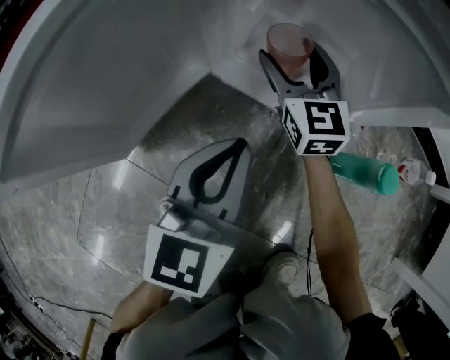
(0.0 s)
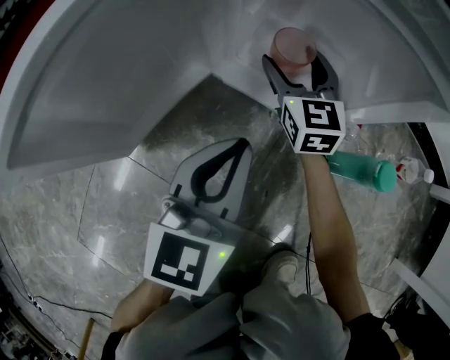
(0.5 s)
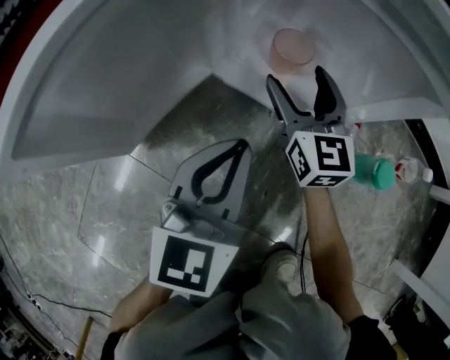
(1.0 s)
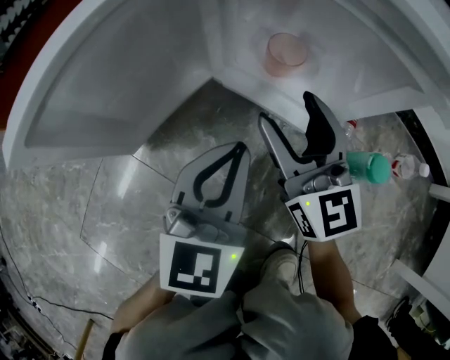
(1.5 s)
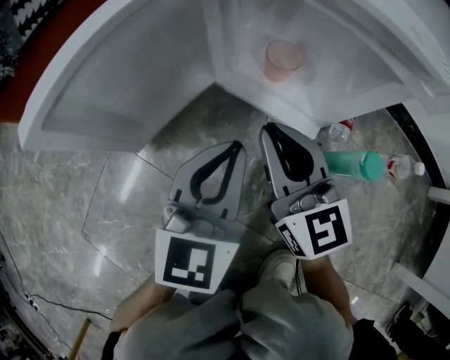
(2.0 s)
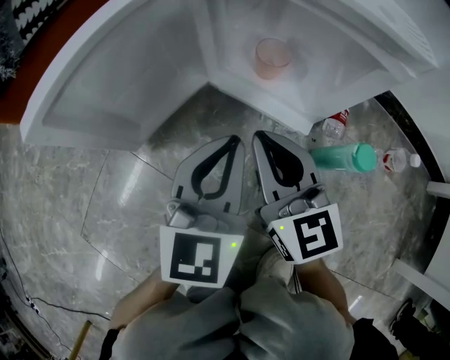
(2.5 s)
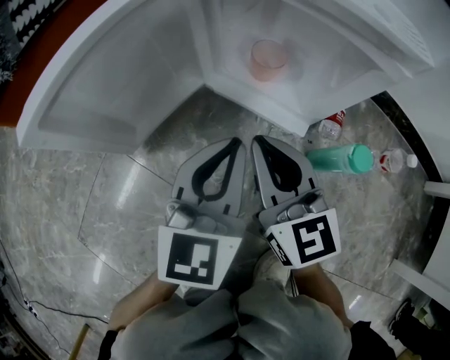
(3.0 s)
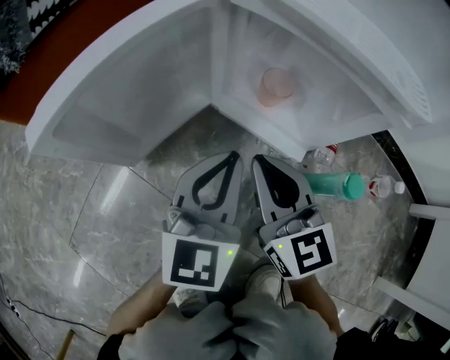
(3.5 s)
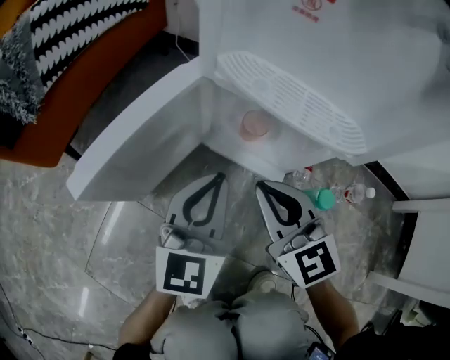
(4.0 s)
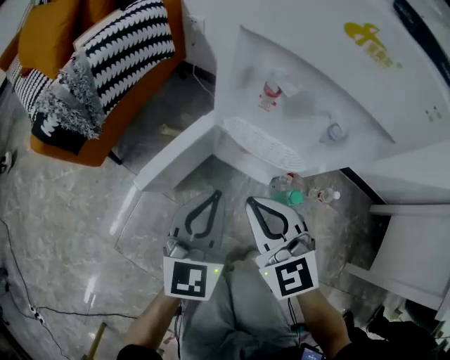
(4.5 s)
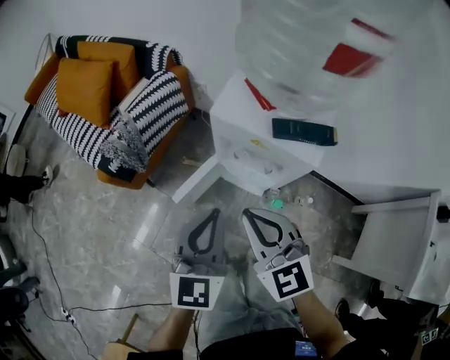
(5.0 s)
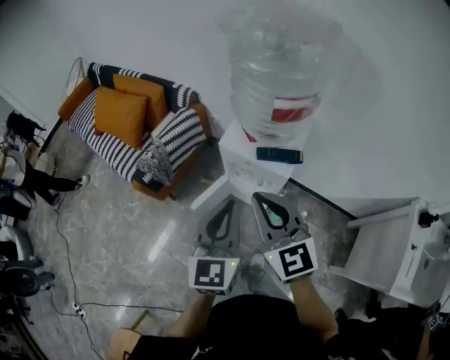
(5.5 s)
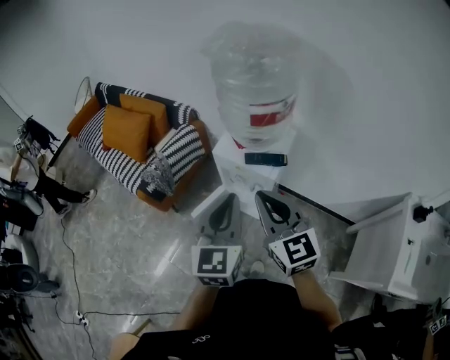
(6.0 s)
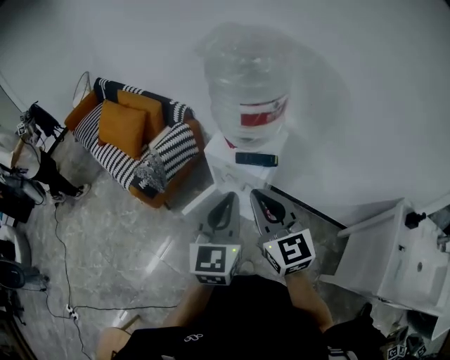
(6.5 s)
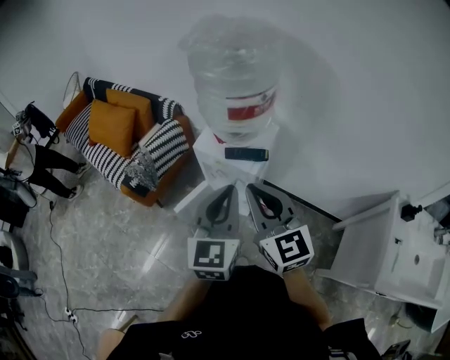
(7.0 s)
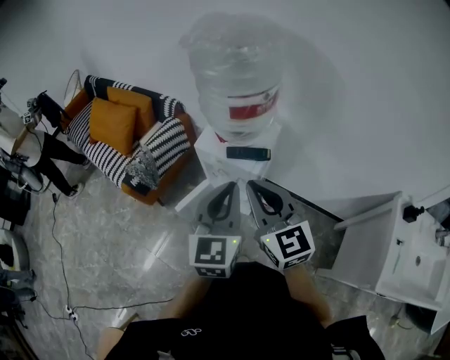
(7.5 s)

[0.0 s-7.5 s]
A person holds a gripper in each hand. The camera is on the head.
0.0 to 2.0 s: The right gripper goes roughly 20 cm backward and upward, and closes. The left gripper changes place by about 5 cm.
2.0 to 4.0 s: The grippers both shift upward by roughly 10 cm.
4.0 to 5.5 s: The two grippers go about 70 cm upward.
5.5 to 7.5 s: Both grippers travel together to the right, roughly 10 cm.

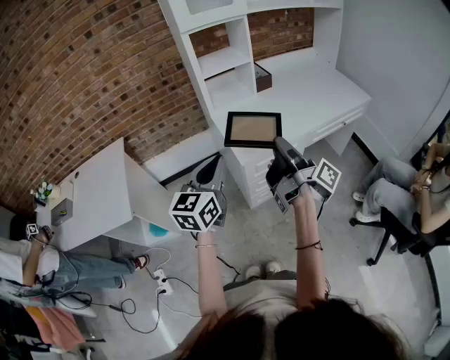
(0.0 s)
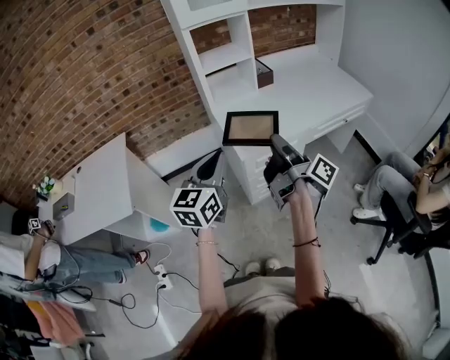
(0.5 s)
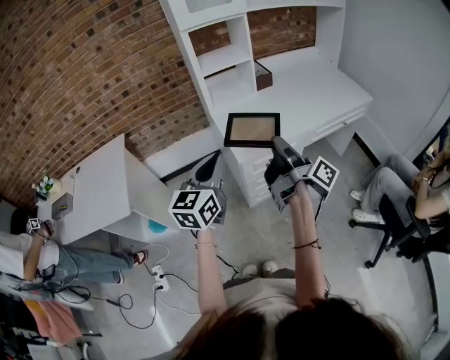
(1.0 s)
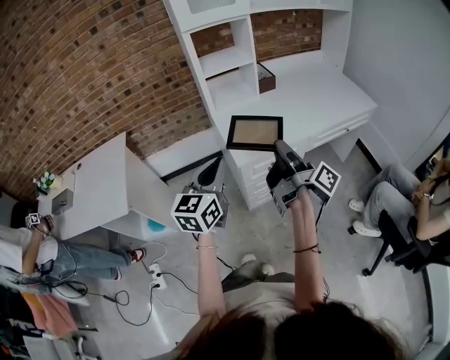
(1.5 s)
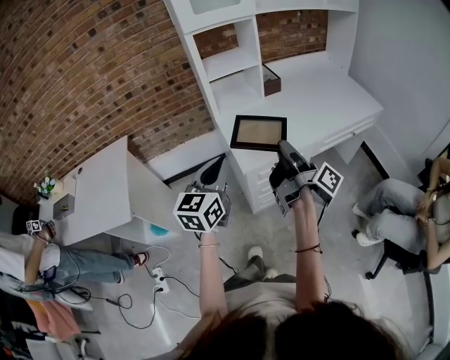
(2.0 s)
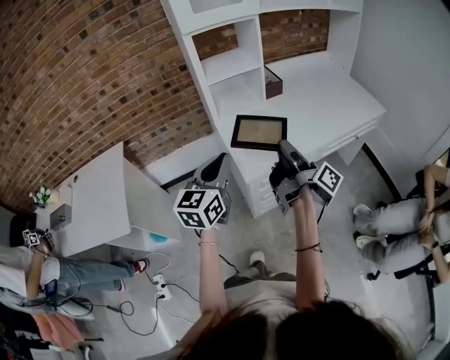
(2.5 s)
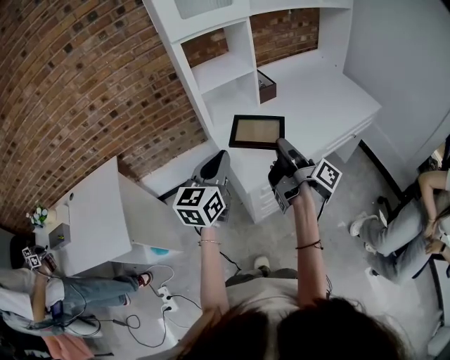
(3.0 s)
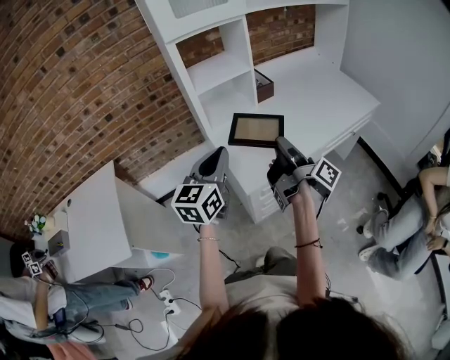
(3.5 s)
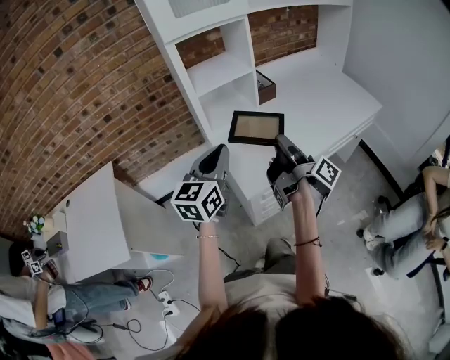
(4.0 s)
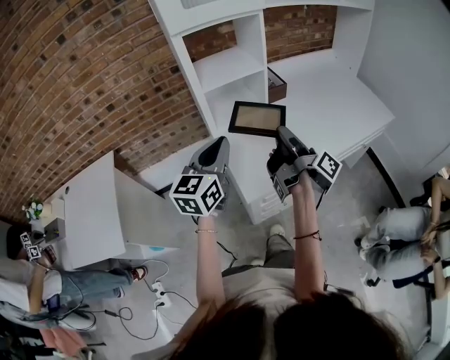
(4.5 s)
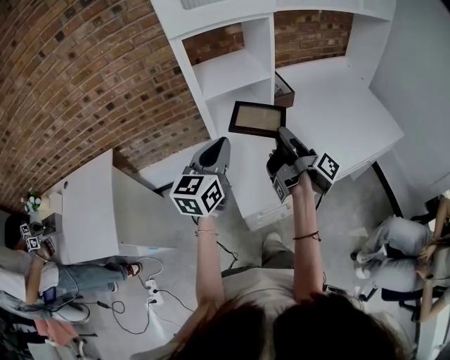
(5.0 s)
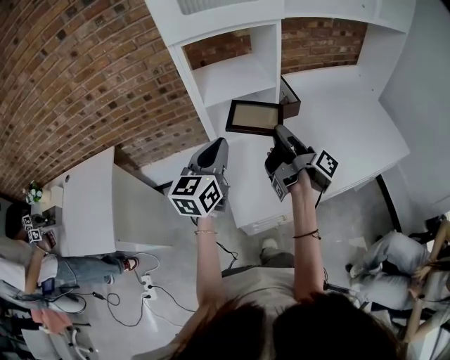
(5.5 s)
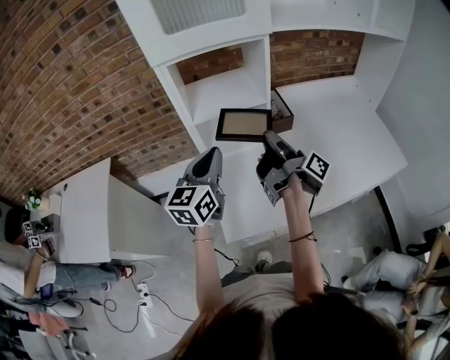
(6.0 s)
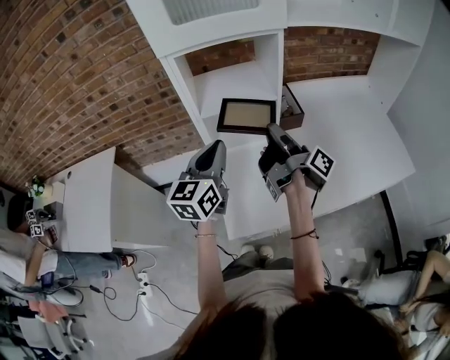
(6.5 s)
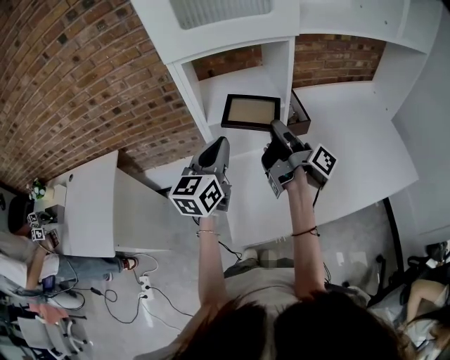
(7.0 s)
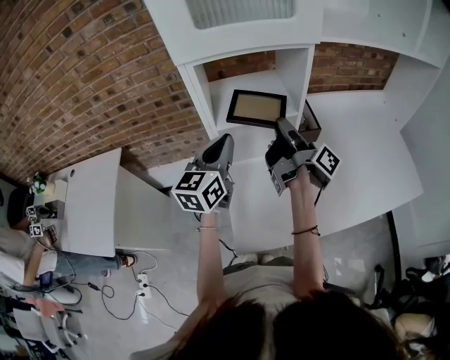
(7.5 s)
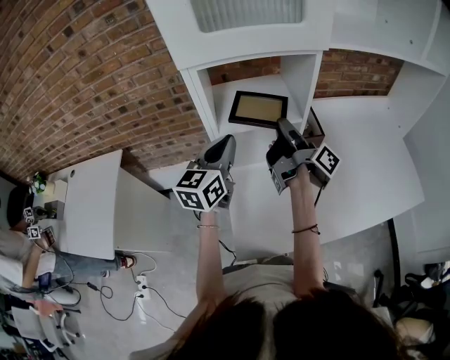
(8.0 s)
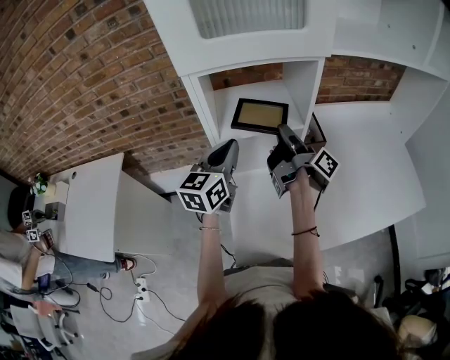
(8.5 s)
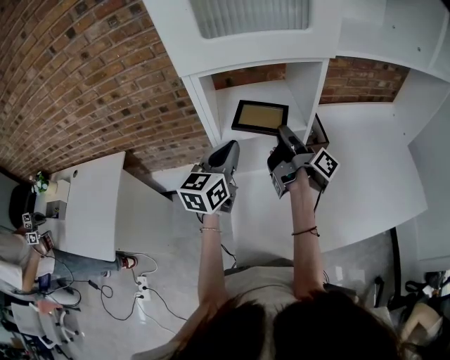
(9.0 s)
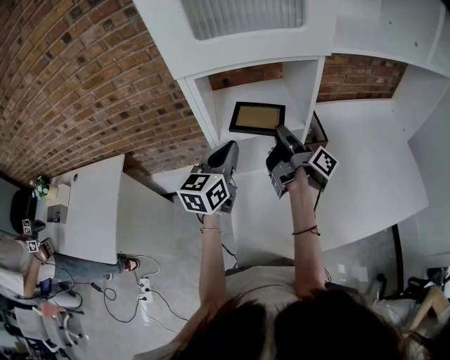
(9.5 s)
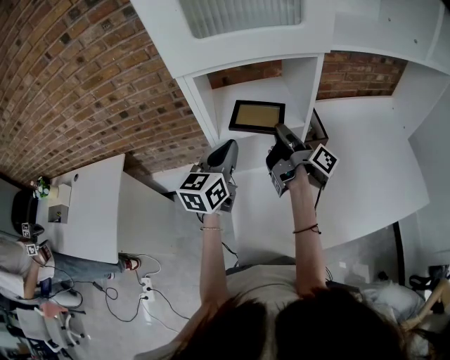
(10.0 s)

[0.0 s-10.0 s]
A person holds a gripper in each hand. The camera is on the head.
2.0 to 4.0 s: The left gripper ends up approximately 15 cm from where it was.
4.0 to 6.0 s: The left gripper shifts by about 15 cm.
6.0 to 8.0 s: The left gripper moves approximately 10 cm.

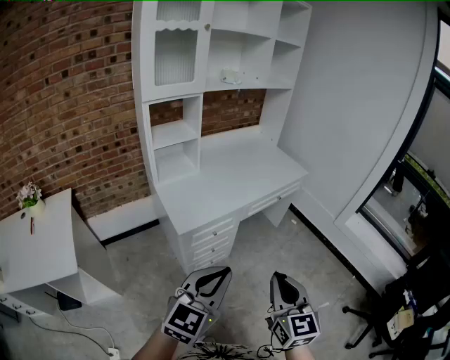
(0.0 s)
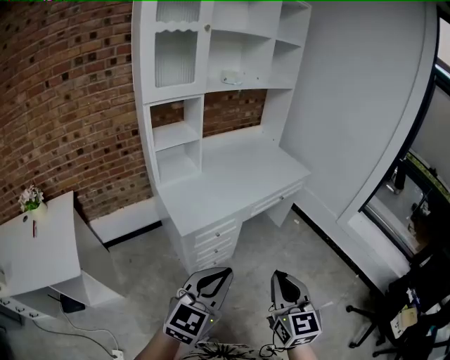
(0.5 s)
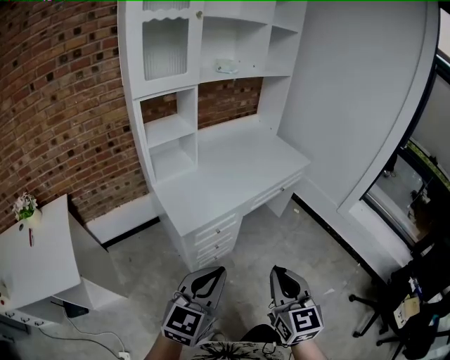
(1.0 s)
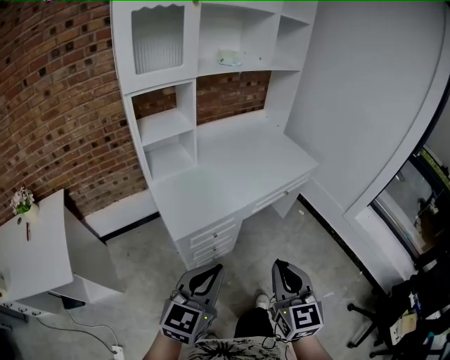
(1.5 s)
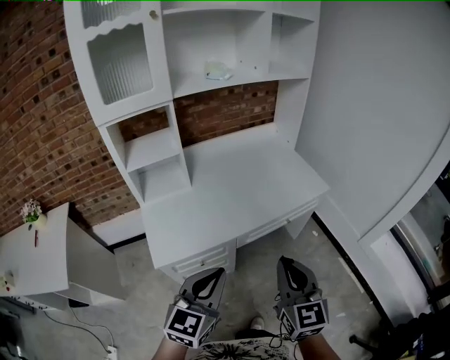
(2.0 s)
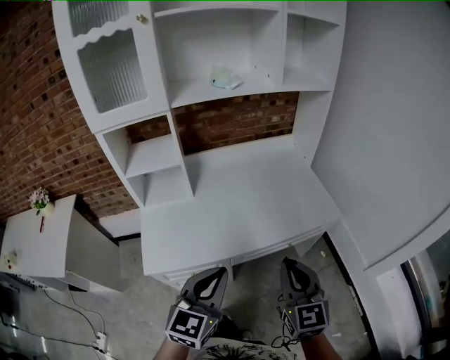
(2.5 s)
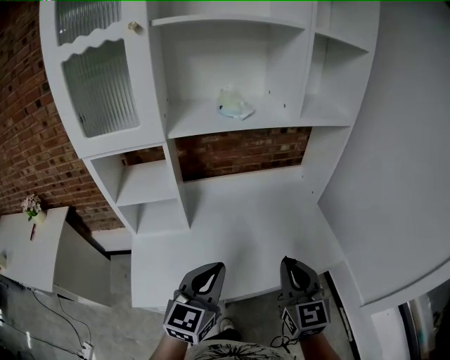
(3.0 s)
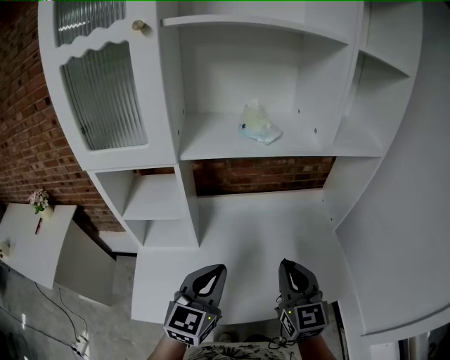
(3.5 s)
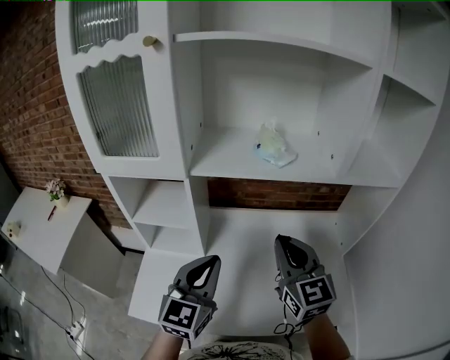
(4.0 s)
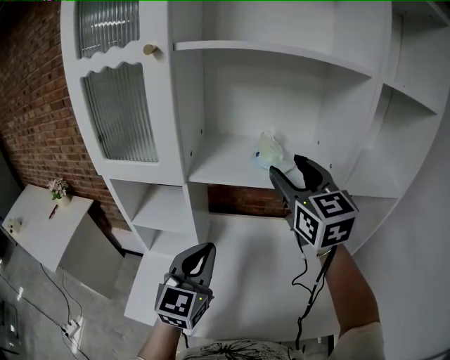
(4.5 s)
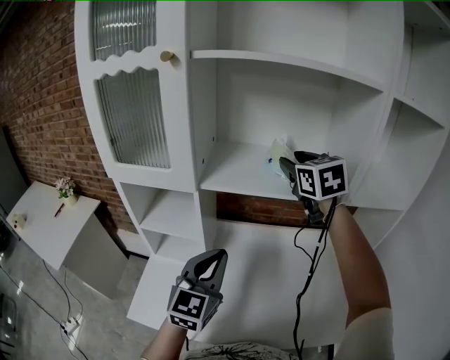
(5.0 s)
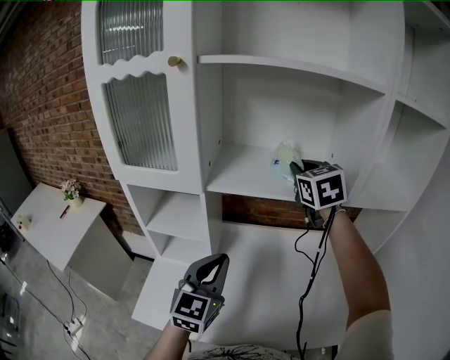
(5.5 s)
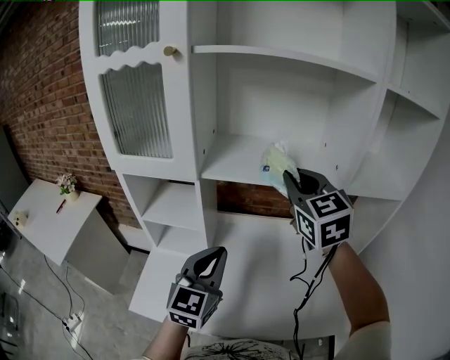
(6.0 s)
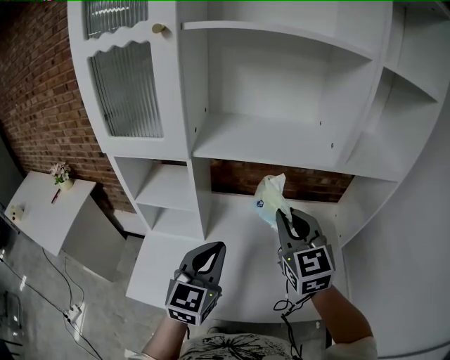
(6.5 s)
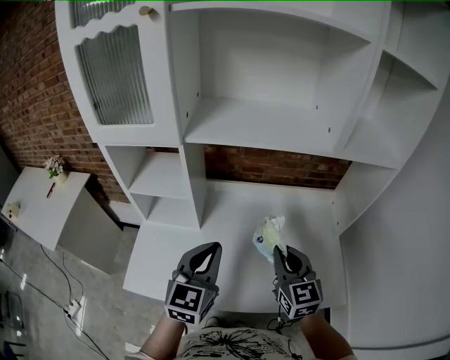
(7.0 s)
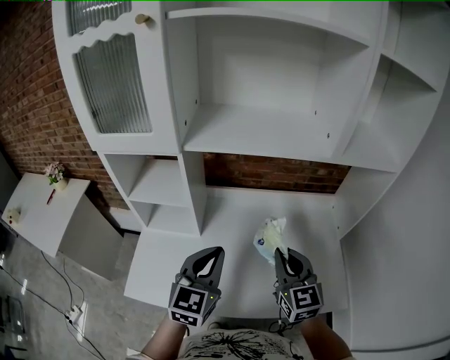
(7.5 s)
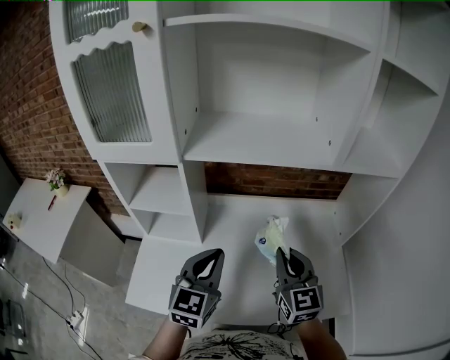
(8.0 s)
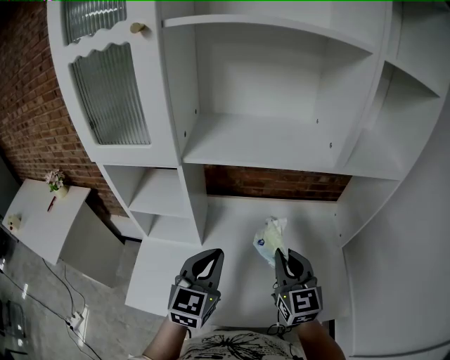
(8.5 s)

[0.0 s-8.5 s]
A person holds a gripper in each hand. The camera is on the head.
0.0 to 2.0 s: The two grippers go approximately 30 cm forward.
2.0 to 4.0 s: The pair of grippers is taken roughly 50 cm. The right gripper turns by some 30 degrees; the left gripper turns by about 30 degrees.
4.0 to 6.5 s: The right gripper reaches about 20 cm forward, then returns, and opens, then closes once more.
6.5 to 8.5 s: The right gripper travels downward by approximately 10 cm.

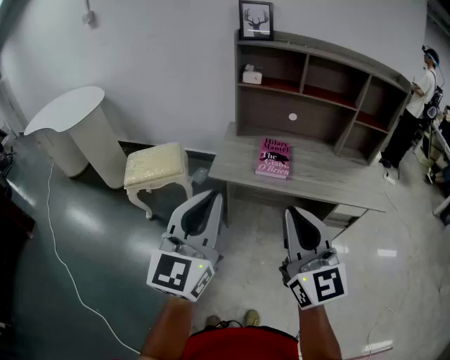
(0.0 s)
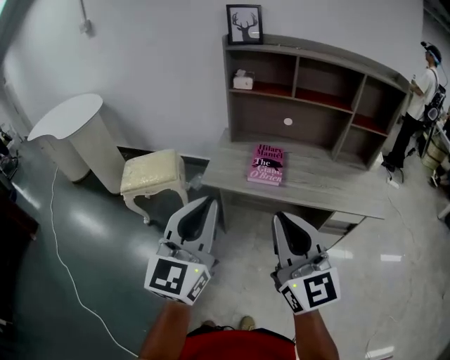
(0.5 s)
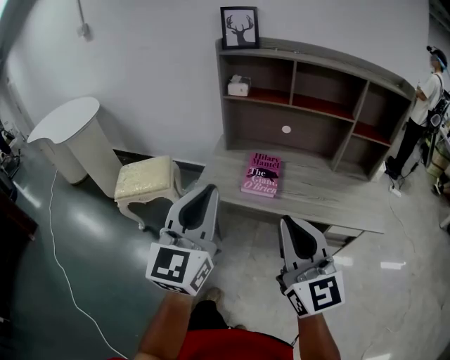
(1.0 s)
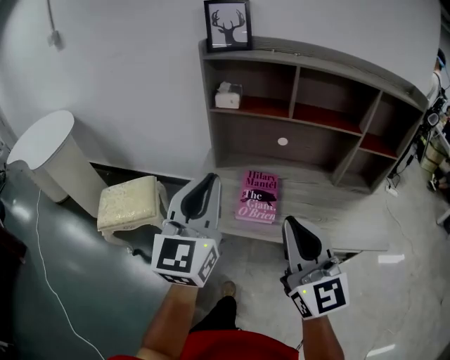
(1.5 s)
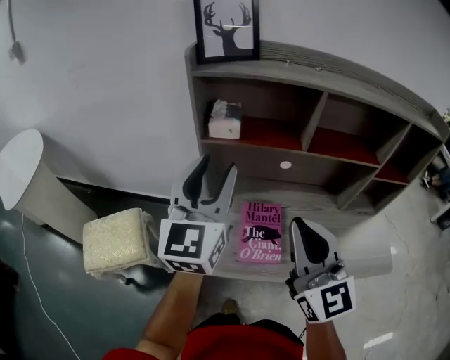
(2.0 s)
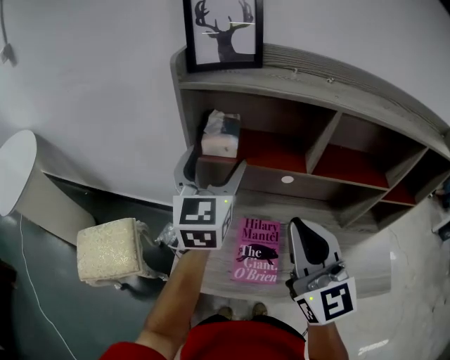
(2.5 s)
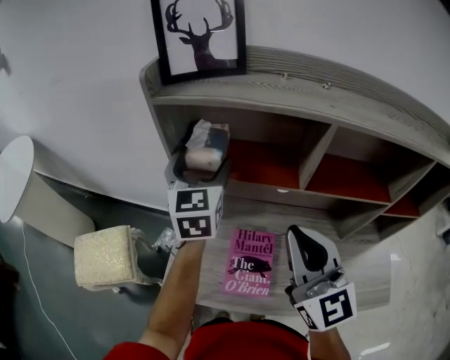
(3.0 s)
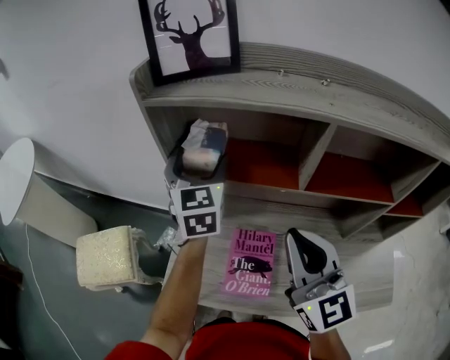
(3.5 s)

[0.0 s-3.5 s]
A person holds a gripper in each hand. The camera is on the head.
0.0 to 2.0 s: Both grippers move forward, roughly 40 cm. The left gripper opens up.
2.0 to 3.5 s: The left gripper travels forward by about 20 cm, changes its angle by about 30 degrees, and opens its fingers. The right gripper travels forward and to the right by roughly 15 cm.
